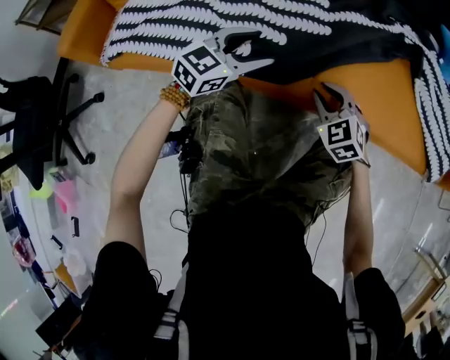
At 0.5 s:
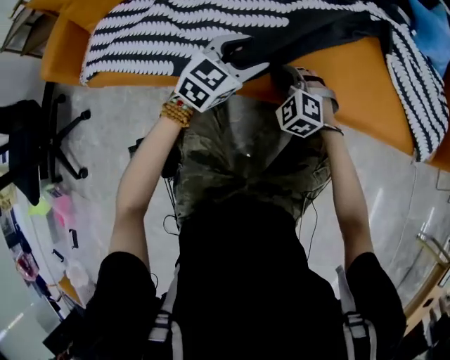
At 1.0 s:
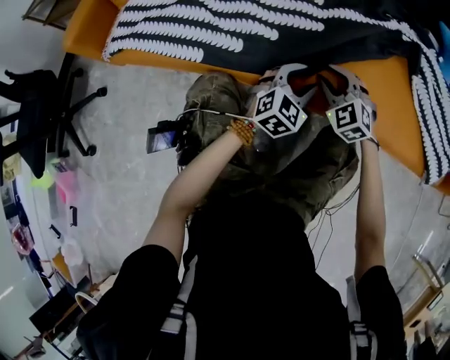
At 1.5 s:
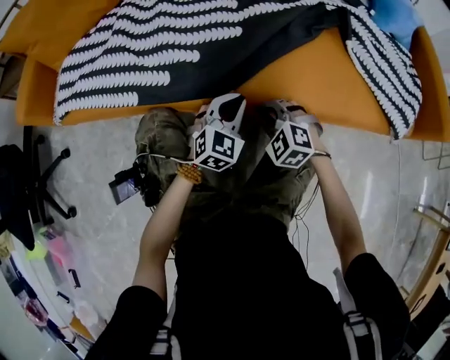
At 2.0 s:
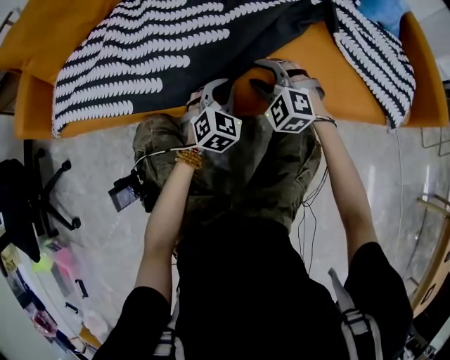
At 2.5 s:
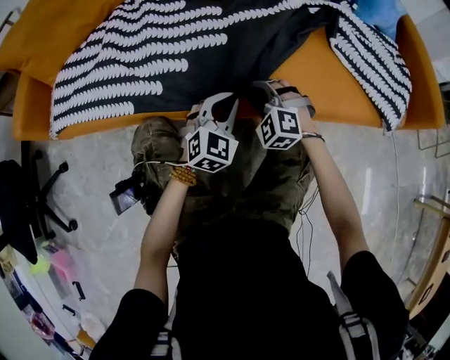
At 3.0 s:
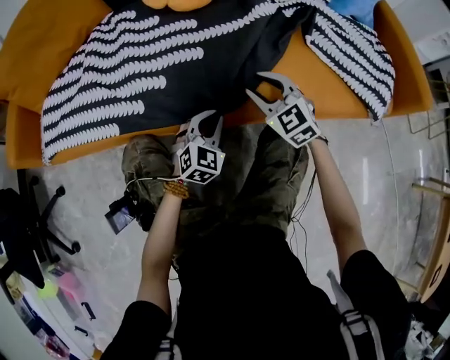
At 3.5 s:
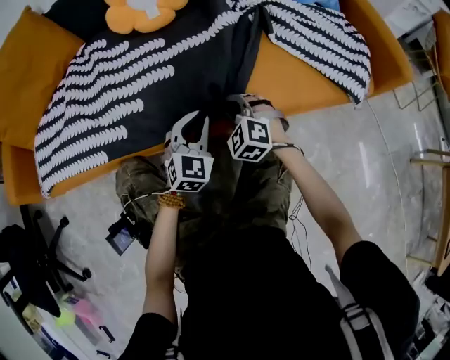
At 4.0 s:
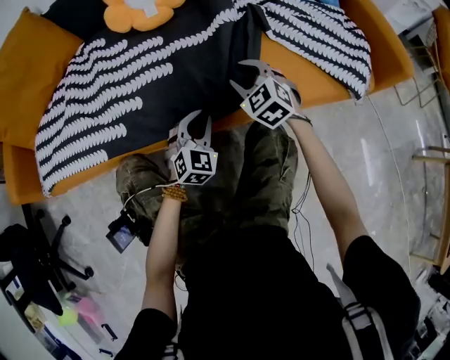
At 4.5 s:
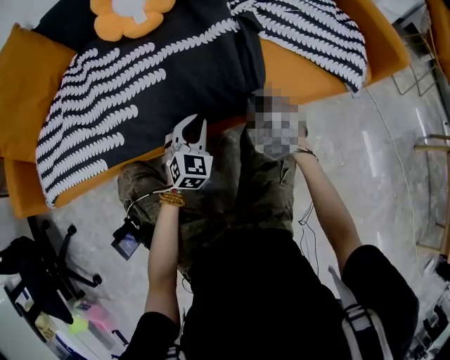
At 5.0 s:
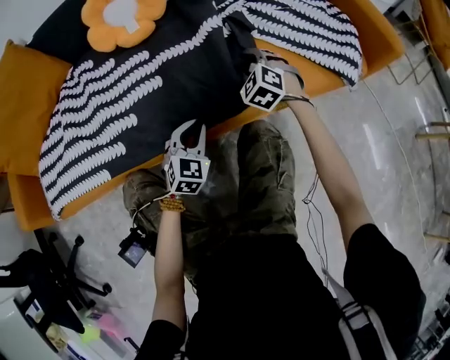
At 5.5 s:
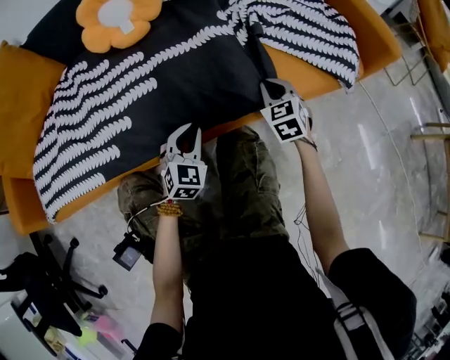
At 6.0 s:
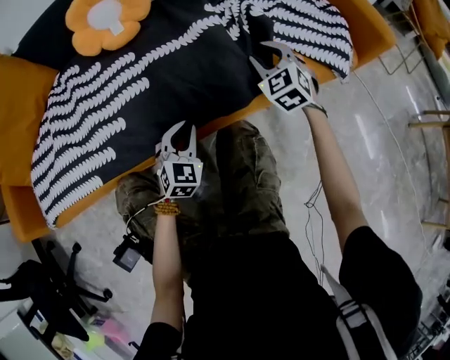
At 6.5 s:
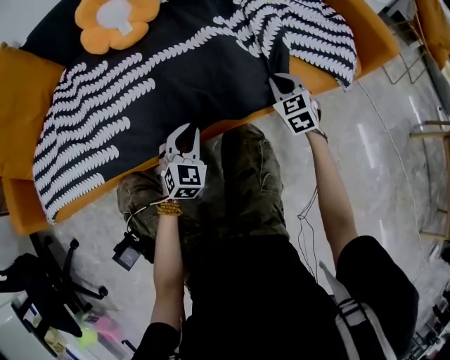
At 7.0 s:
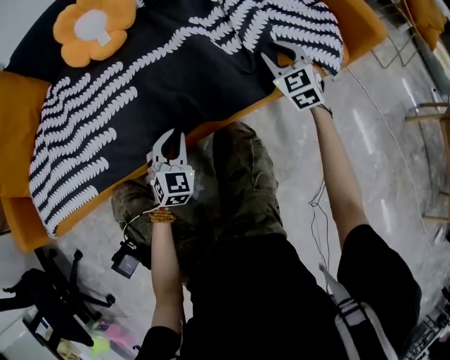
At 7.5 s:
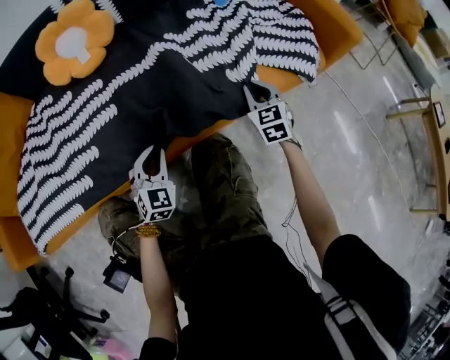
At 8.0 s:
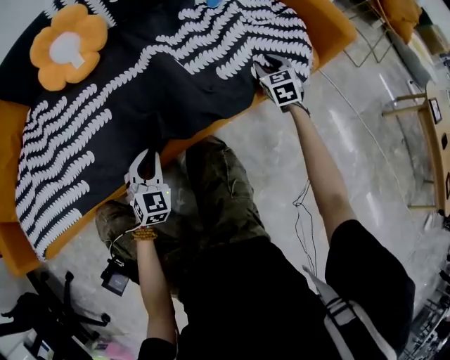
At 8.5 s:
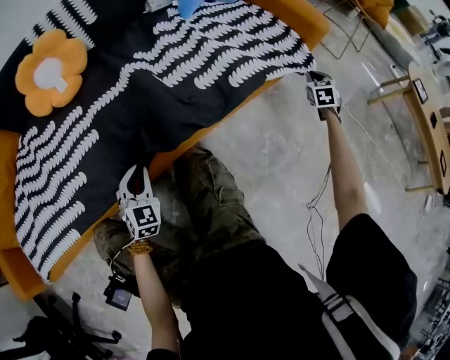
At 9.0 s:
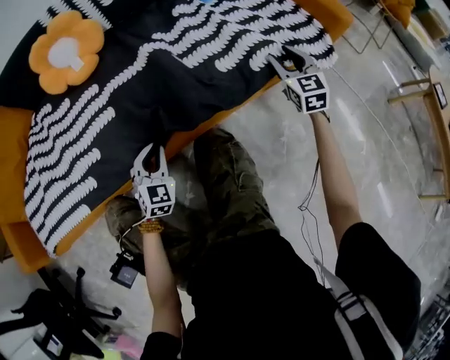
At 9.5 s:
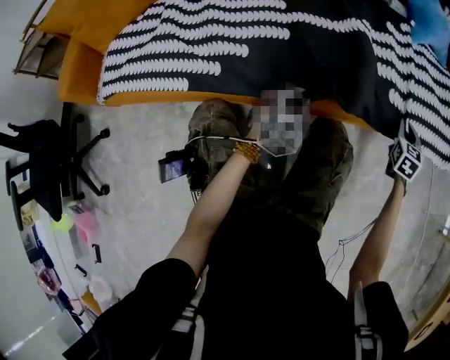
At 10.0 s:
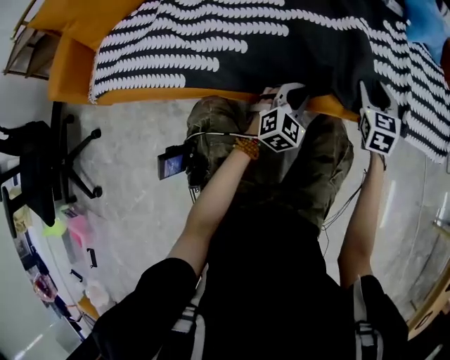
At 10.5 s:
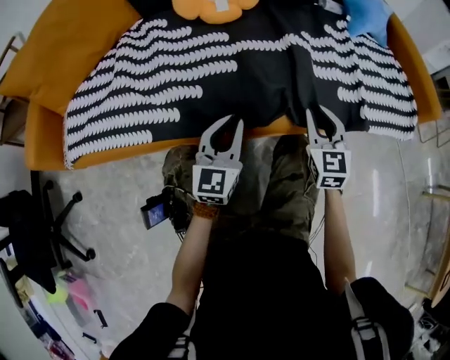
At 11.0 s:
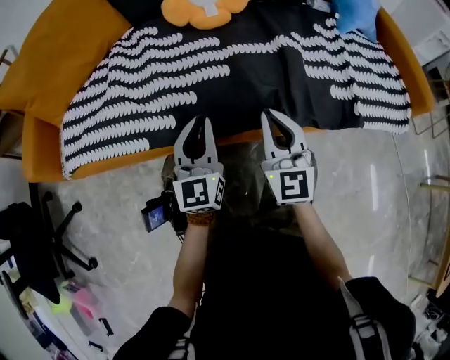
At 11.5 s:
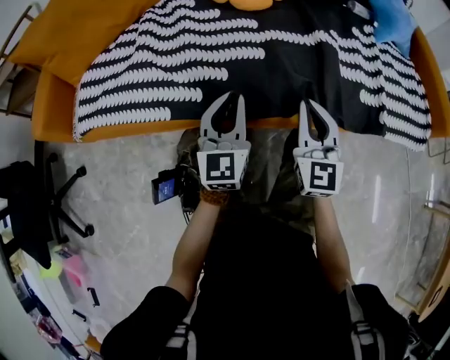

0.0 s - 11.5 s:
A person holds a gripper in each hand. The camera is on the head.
0.0 s - 2.0 s: The left gripper shifts approximately 15 cm to the right and downward, turns by about 30 degrees, and closes; the right gripper swings forward and backward, about 10 cm each way, with 2 reversals, and swivels roughly 20 degrees.
2.0 s - 4.0 s: The left gripper travels to the right by approximately 5 cm. The right gripper moves to the right, approximately 10 cm, swivels some 30 degrees, and closes, then opens again.
4.0 s - 6.0 s: The right gripper travels to the right by roughly 15 cm, and closes, then reopens.
6.0 s - 7.5 s: The right gripper travels to the right and downward by some 10 cm, and turns by roughly 20 degrees.
7.5 s - 9.5 s: The right gripper travels to the right and back again, some 35 cm each way, and opens and closes again.
9.5 s - 11.5 s: The right gripper goes about 35 cm to the left and upward, turns by roughly 30 degrees, and opens, then closes once more, while the left gripper travels to the left and upward by some 20 cm, and changes its angle by approximately 40 degrees.

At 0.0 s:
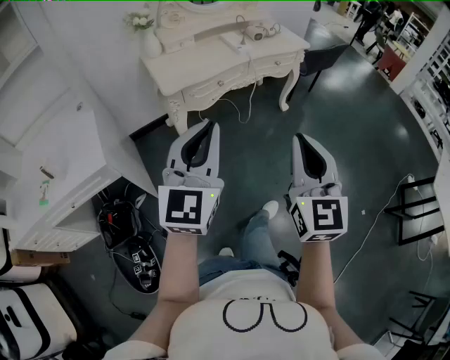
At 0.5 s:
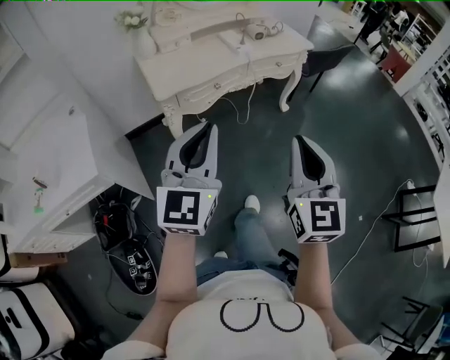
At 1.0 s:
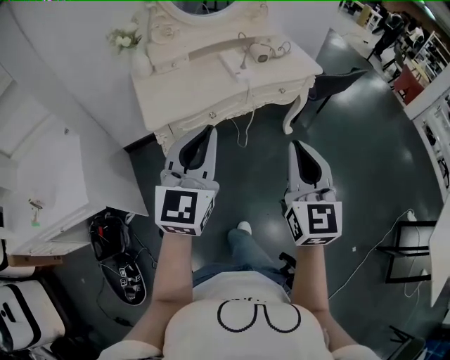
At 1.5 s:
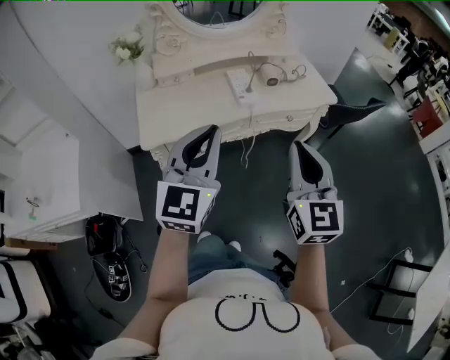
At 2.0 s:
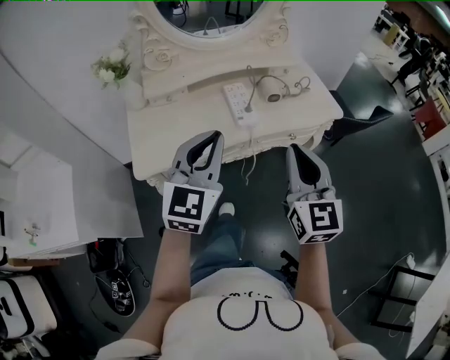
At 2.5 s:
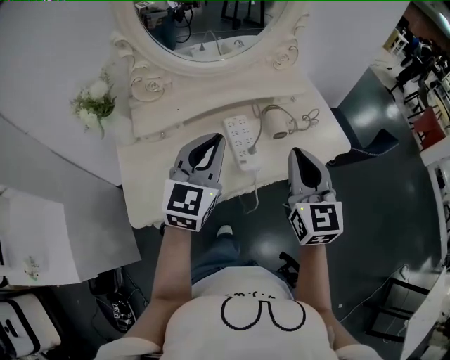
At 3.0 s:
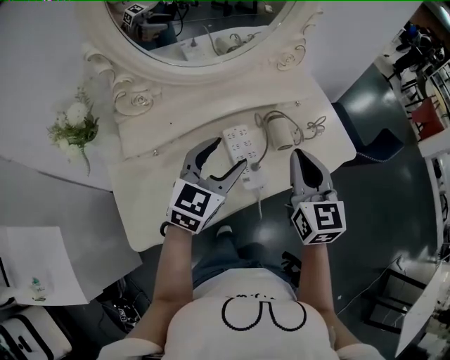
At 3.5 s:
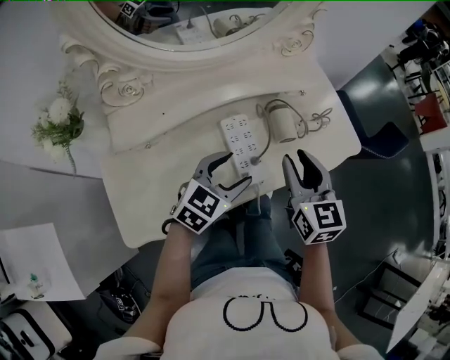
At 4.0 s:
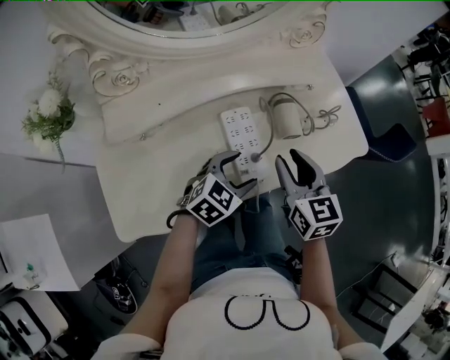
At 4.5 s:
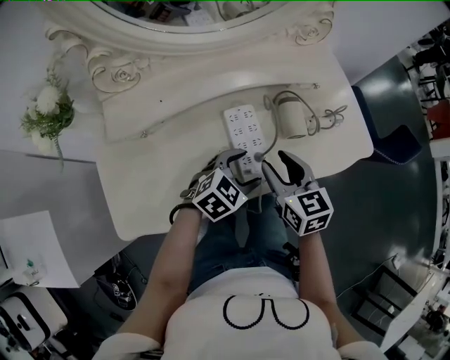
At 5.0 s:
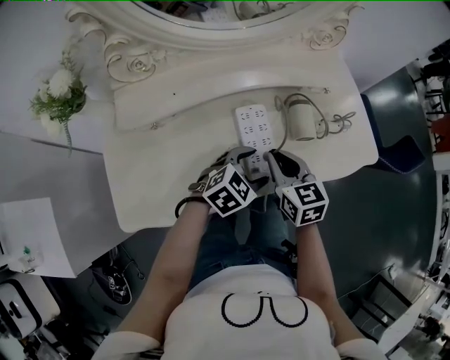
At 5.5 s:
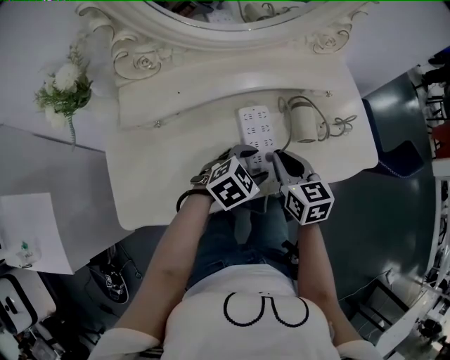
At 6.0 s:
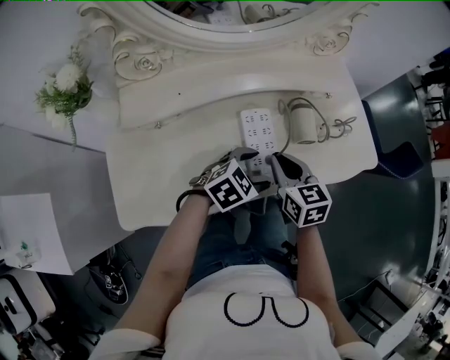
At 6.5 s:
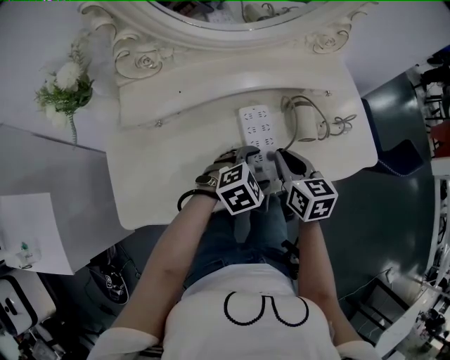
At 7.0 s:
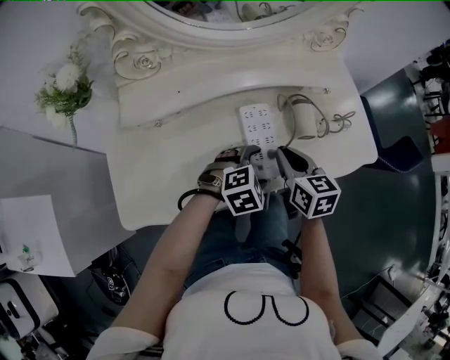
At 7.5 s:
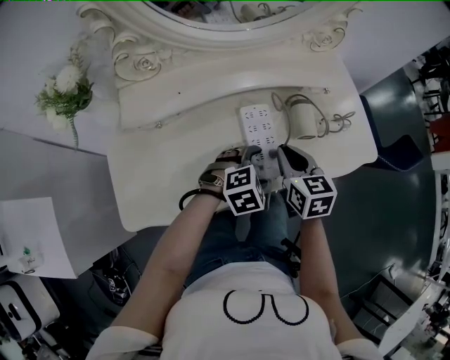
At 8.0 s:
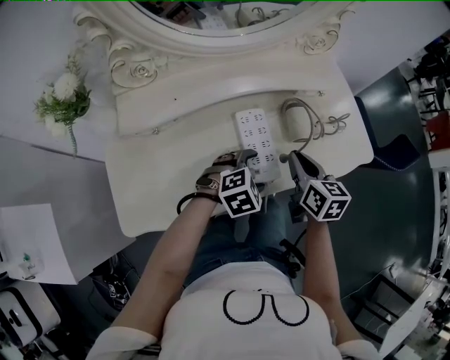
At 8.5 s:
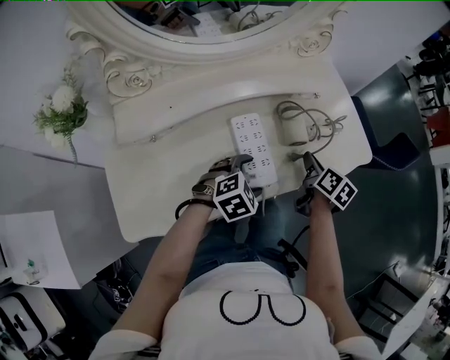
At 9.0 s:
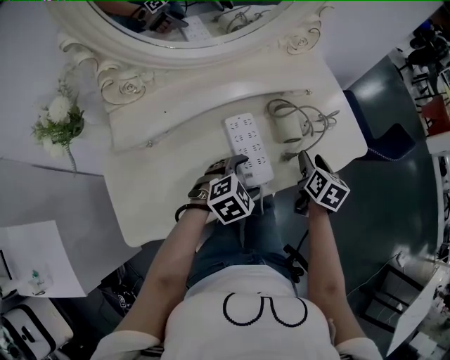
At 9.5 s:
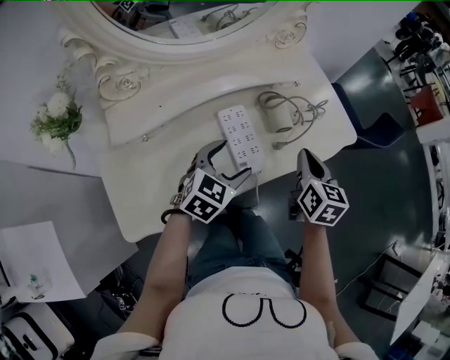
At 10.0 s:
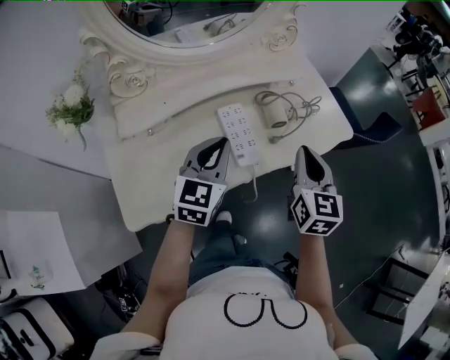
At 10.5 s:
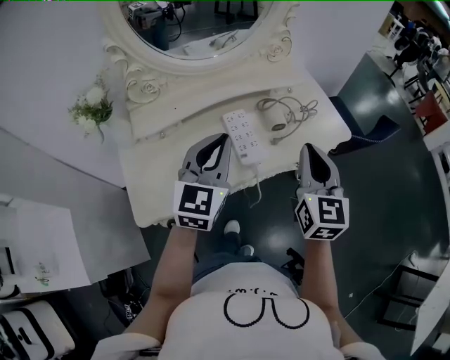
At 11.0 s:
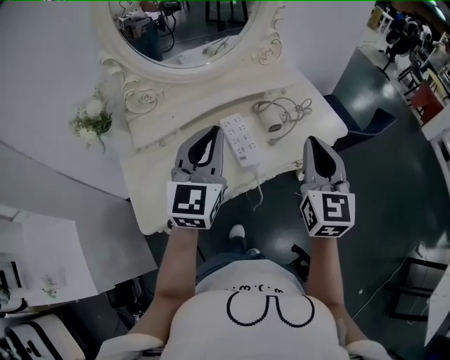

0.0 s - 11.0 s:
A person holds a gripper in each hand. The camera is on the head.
0.0 s - 2.0 s: Both grippers are carried forward, approximately 50 cm.
2.0 s - 3.5 s: The right gripper shifts roughly 30 cm forward, and opens its fingers; the left gripper shifts about 30 cm forward and downward, turns by approximately 40 degrees, and opens up.
3.5 s - 5.5 s: The left gripper moves downward, roughly 10 cm, while the right gripper shifts roughly 15 cm downward and to the left, rotates roughly 20 degrees, and closes up.
5.5 s - 7.5 s: The left gripper swivels approximately 20 degrees.
7.5 s - 9.0 s: The right gripper travels to the right and forward by about 15 cm, turns by some 40 degrees, and opens.
9.0 s - 11.0 s: The left gripper travels upward by some 30 cm, points its fingers about 50 degrees further upward, and closes up, while the right gripper goes about 35 cm upward and backward, tilts its fingers some 40 degrees upward, and closes up.

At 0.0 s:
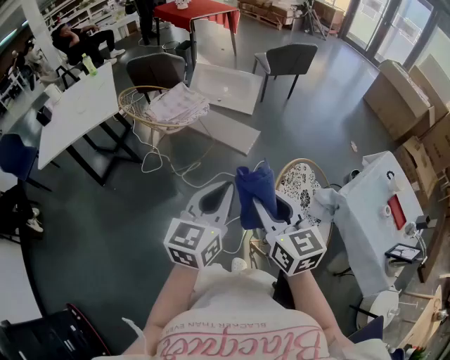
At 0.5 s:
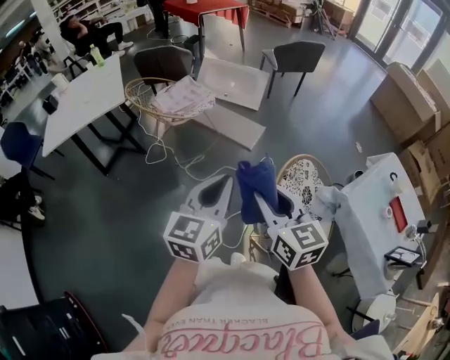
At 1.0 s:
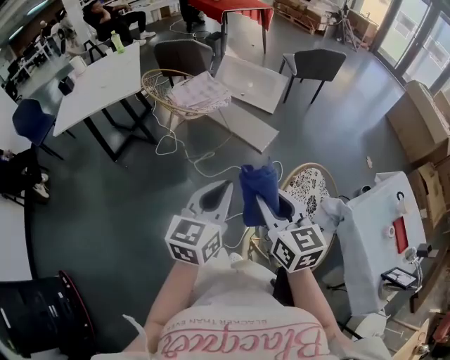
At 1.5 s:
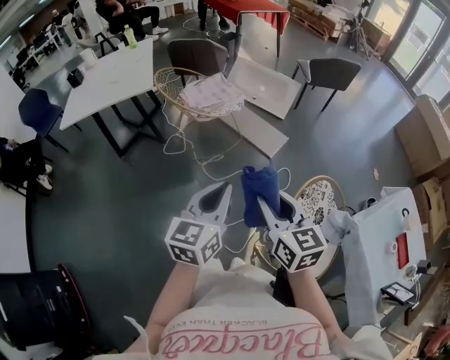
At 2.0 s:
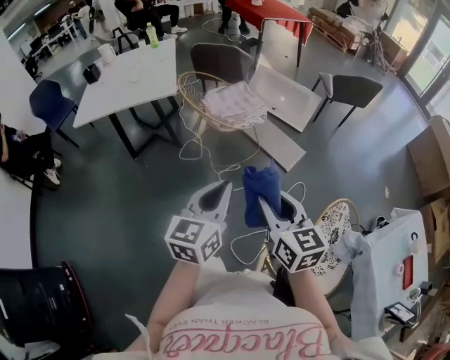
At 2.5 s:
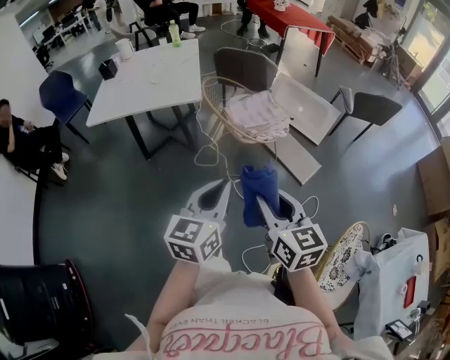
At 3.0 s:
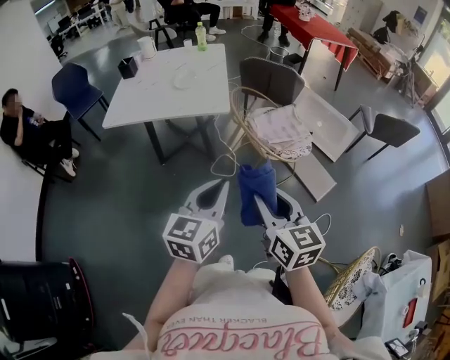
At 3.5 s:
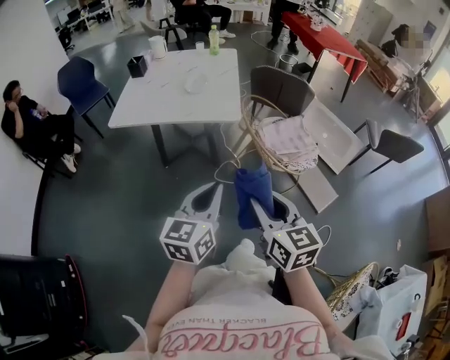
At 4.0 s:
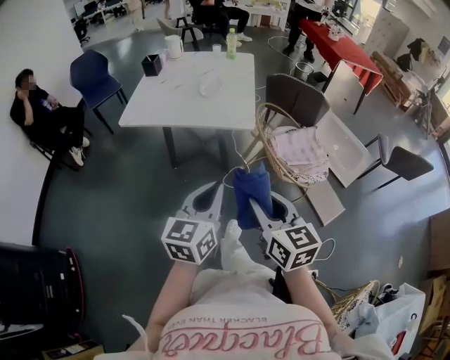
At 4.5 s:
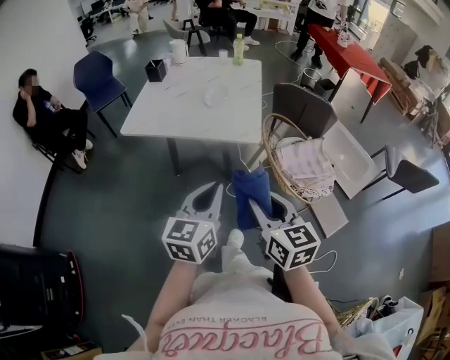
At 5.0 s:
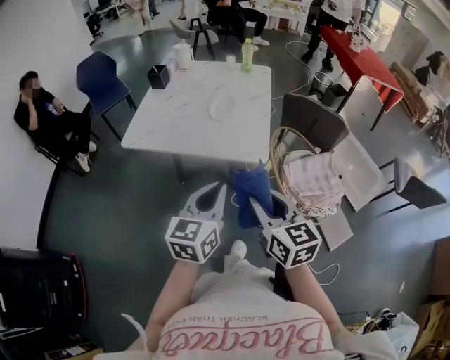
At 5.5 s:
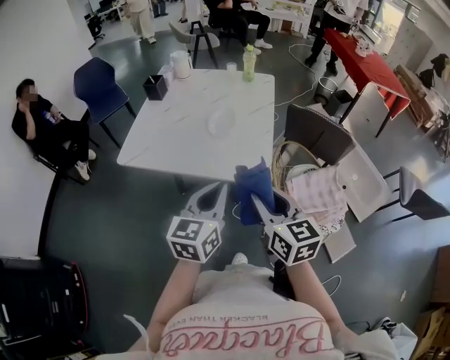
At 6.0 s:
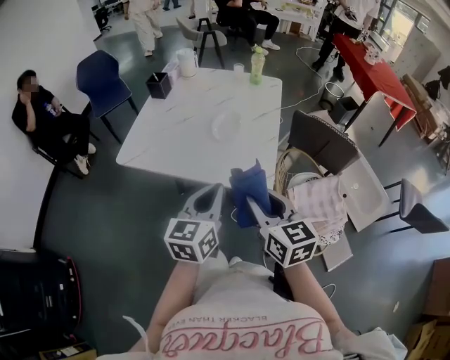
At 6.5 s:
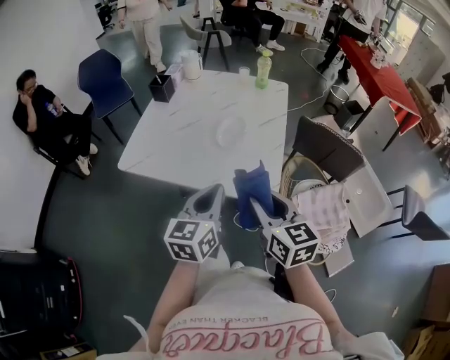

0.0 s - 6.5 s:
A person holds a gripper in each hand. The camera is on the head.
0.0 s - 2.0 s: The grippers both shift to the left and forward by roughly 20 cm.
2.0 s - 4.5 s: Both grippers are carried forward and to the left, some 50 cm. The right gripper changes its angle by some 20 degrees, while the left gripper changes its angle by roughly 20 degrees.
4.5 s - 6.5 s: The two grippers go roughly 30 cm forward.
